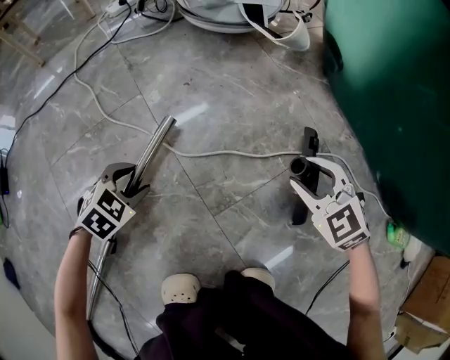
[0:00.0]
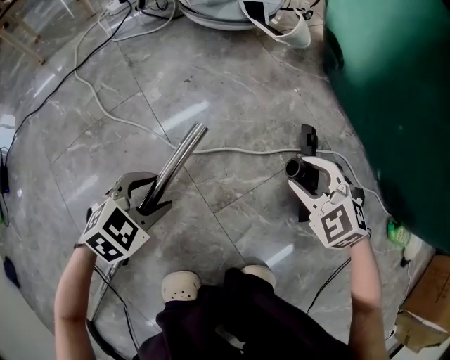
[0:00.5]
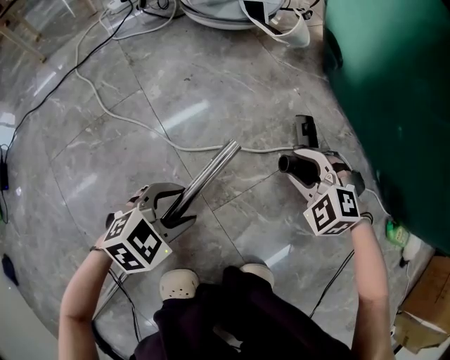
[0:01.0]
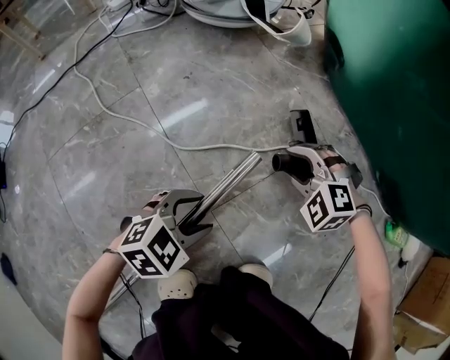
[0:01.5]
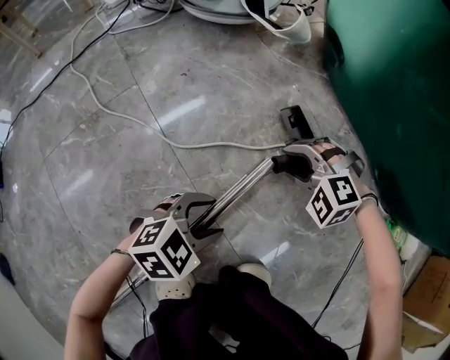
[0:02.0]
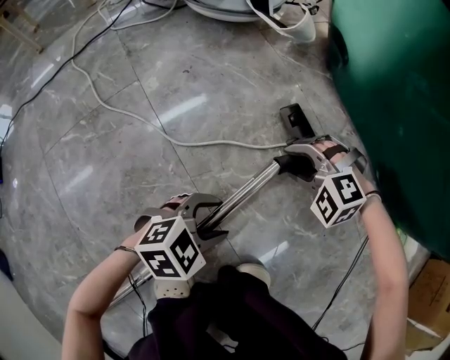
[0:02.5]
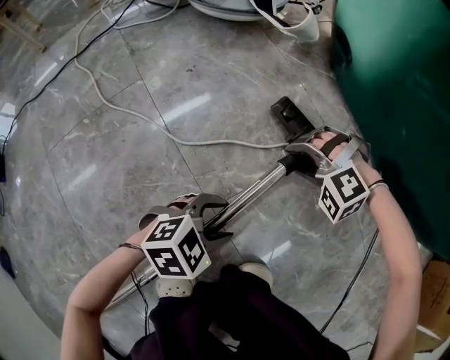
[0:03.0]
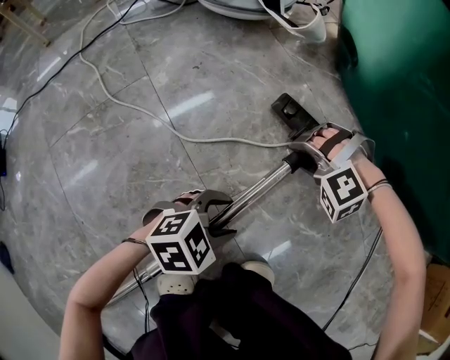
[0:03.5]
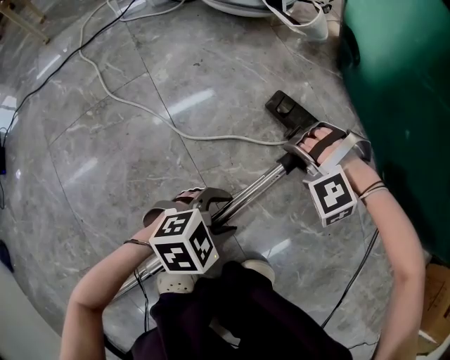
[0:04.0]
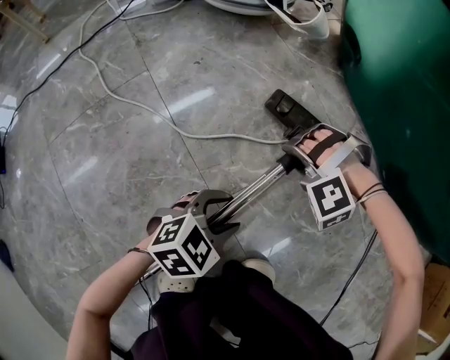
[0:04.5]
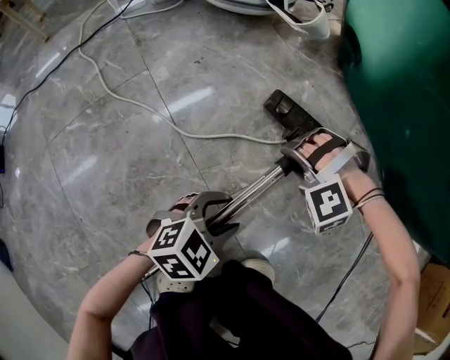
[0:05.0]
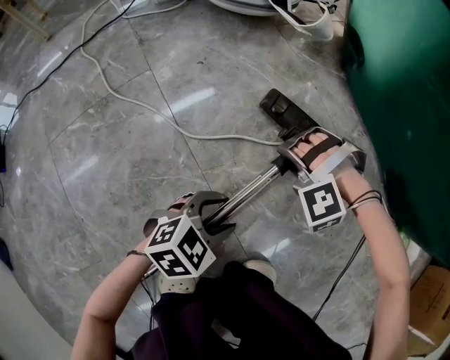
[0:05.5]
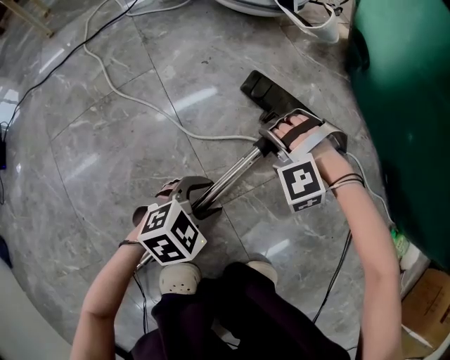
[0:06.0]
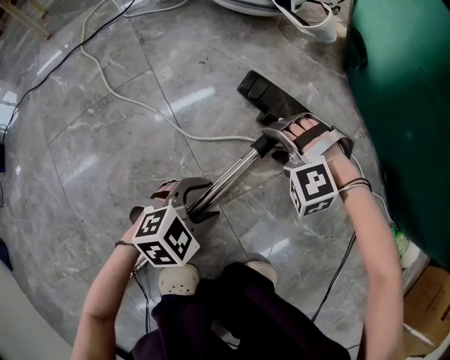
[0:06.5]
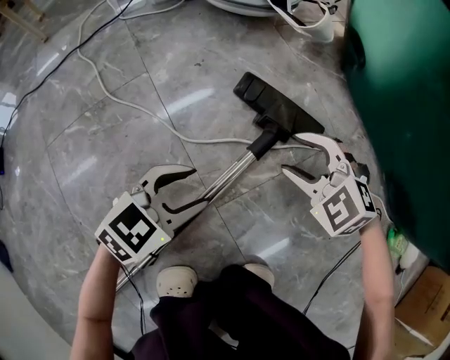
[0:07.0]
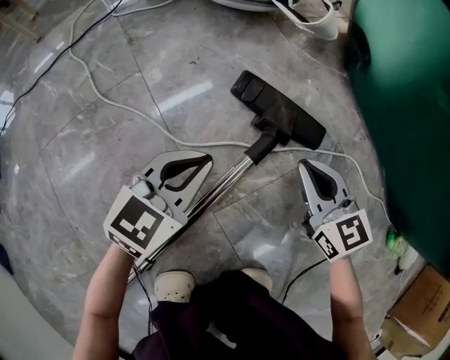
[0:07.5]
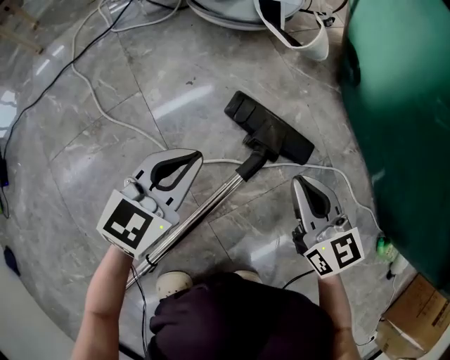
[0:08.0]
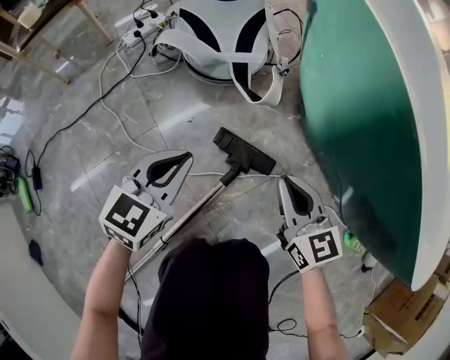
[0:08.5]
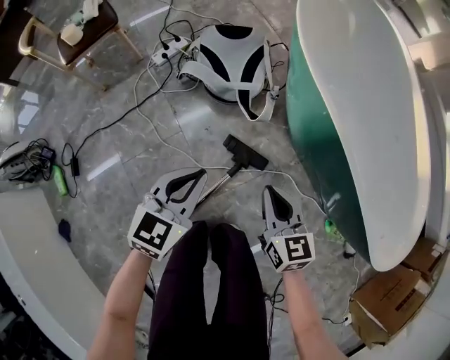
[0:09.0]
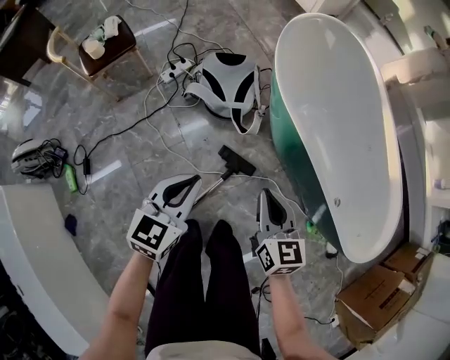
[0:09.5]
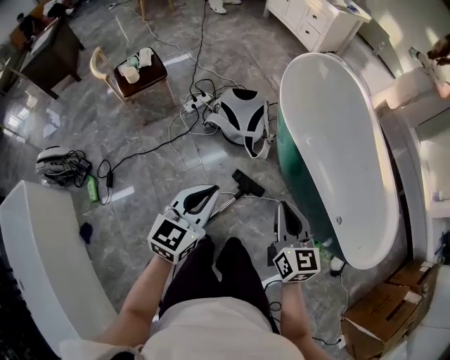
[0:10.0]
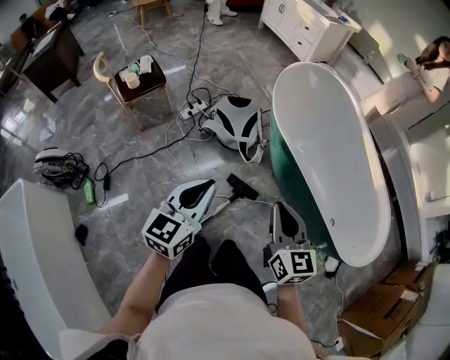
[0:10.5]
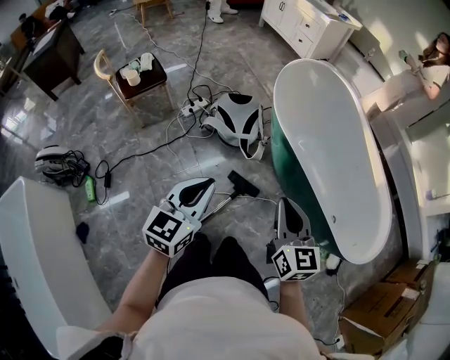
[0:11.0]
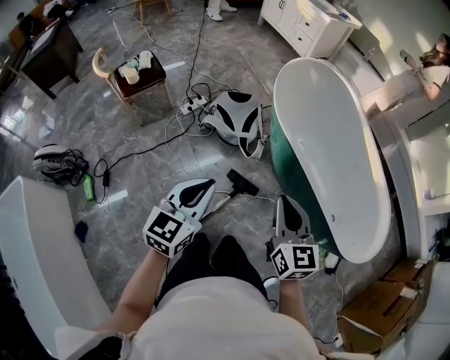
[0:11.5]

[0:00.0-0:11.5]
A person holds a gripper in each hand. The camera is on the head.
0:00.0 to 0:02.0: The right gripper moves downward, about 5 cm, and turns by approximately 40 degrees. The left gripper is displaced to the right by some 20 cm, and changes its angle by about 30 degrees.
0:02.0 to 0:04.0: The right gripper swivels about 30 degrees.
0:04.0 to 0:06.0: Both grippers move to the left, approximately 5 cm.
0:06.0 to 0:07.5: The right gripper is displaced upward and to the right by about 10 cm, rotates around the line of its fingers by about 100 degrees, clockwise from behind, and closes up. The left gripper shifts approximately 15 cm forward and upward, turns by some 30 degrees, and closes up.
0:07.5 to 0:09.5: Both grippers move upward, roughly 70 cm. The right gripper swivels some 20 degrees.
0:09.5 to 0:11.5: The grippers both shift upward and backward by roughly 20 cm.

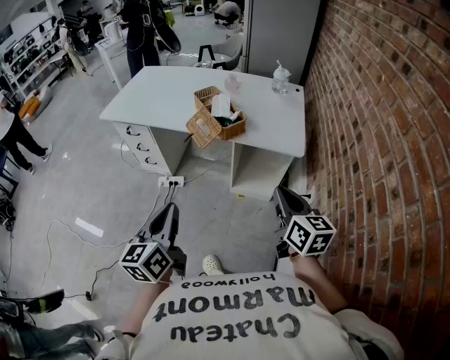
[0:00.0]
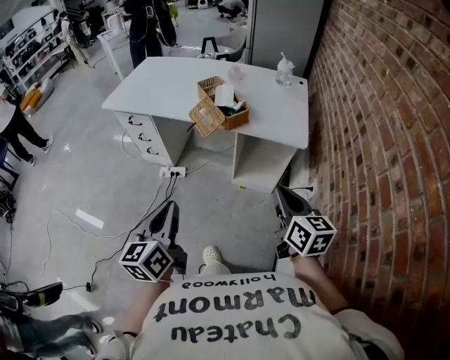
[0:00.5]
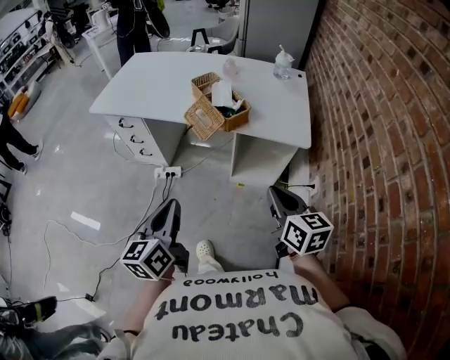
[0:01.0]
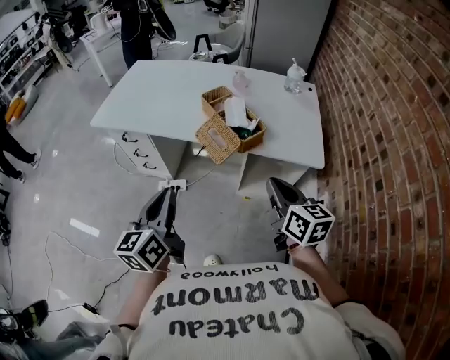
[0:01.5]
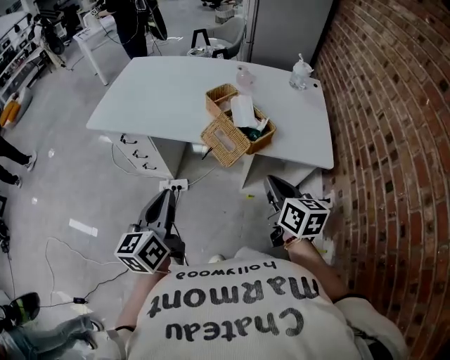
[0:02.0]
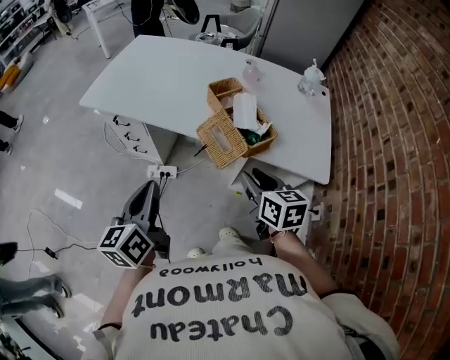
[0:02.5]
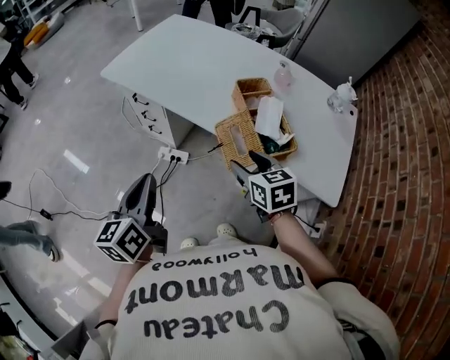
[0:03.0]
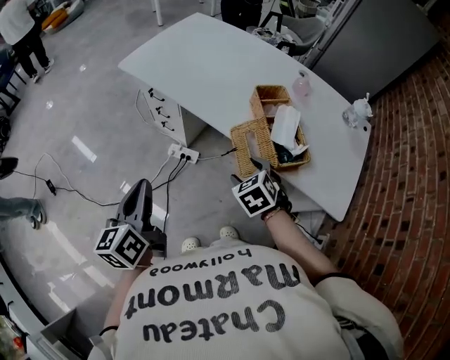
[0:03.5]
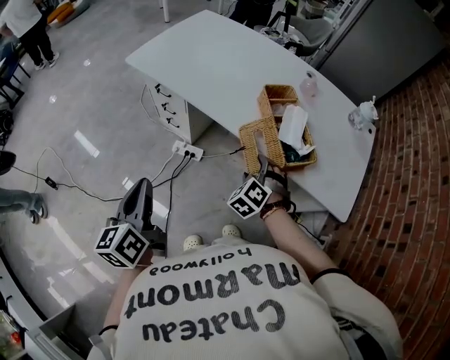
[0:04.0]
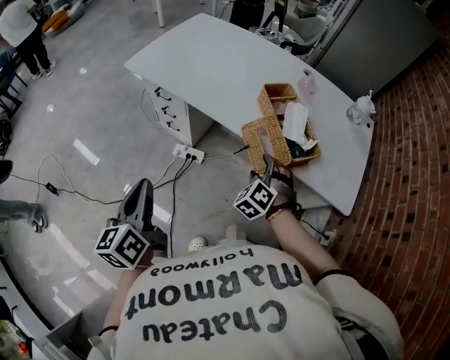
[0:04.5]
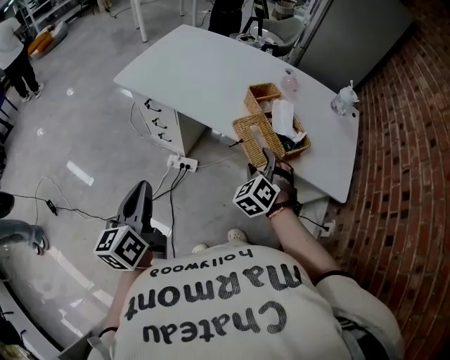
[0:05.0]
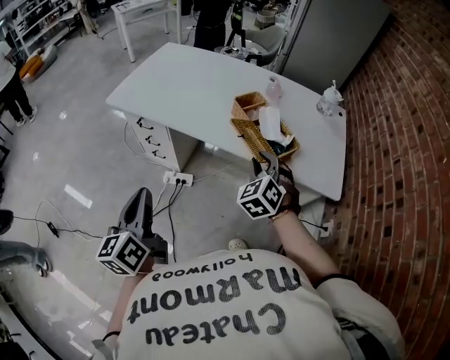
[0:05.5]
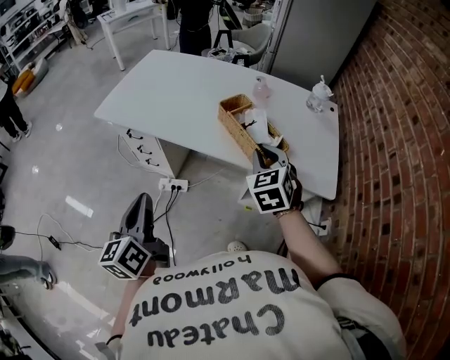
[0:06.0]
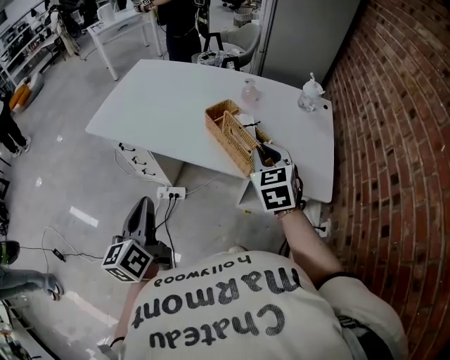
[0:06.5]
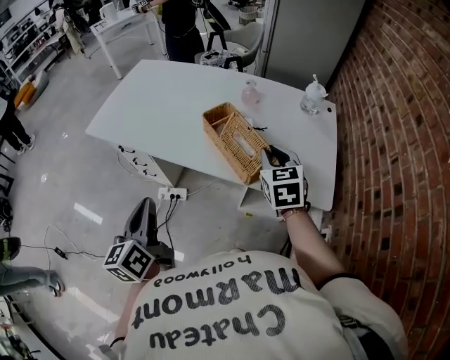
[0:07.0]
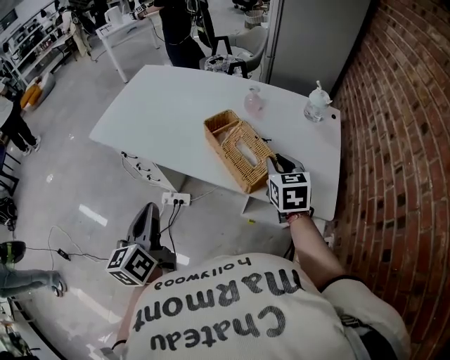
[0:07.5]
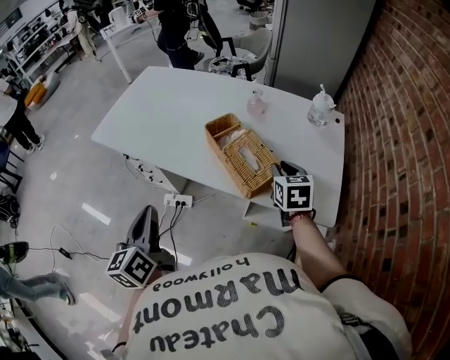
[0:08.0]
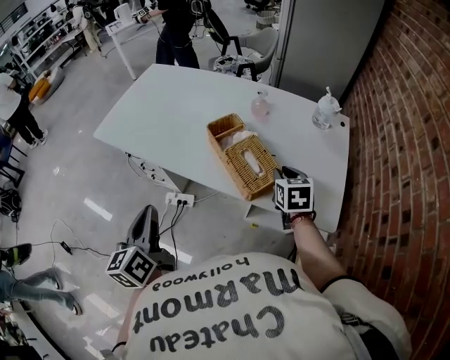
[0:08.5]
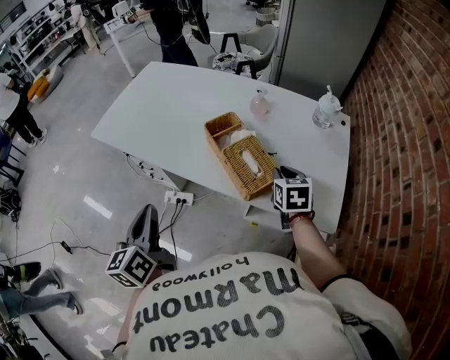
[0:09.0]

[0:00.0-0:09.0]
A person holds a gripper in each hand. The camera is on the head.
0:00.0 to 0:02.0: The two grippers go some 25 cm forward and to the left.
0:02.0 to 0:04.5: The right gripper is displaced forward, downward and to the left by about 20 cm, rolls counterclockwise, seen from behind, by some 90 degrees, and opens up, while the left gripper travels to the left by about 10 cm, and rotates approximately 30 degrees.
0:04.5 to 0:07.0: The right gripper goes about 25 cm upward, to the right and forward, rotates around the line of its fingers by some 50 degrees, clockwise from behind, and closes. The left gripper travels to the right and forward by some 15 cm.
0:07.0 to 0:09.0: The right gripper is displaced downward and to the right by roughly 10 cm.

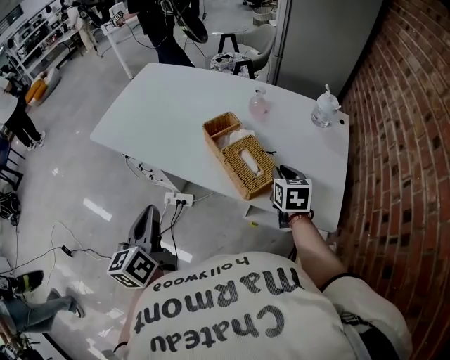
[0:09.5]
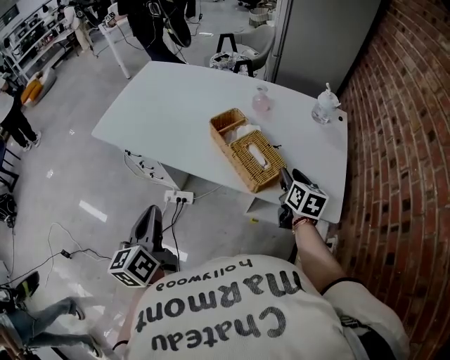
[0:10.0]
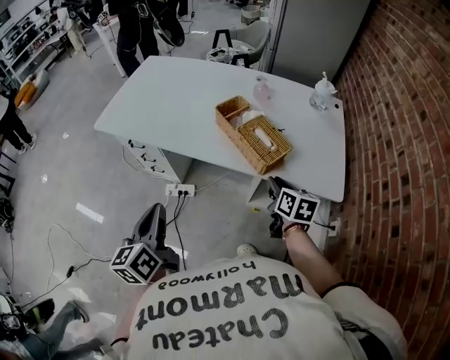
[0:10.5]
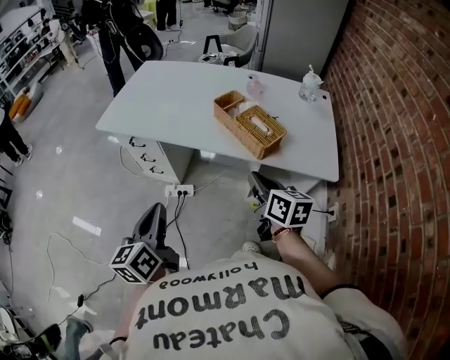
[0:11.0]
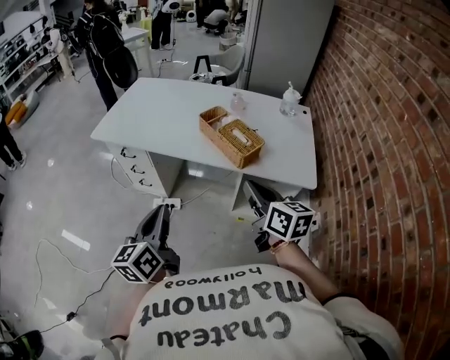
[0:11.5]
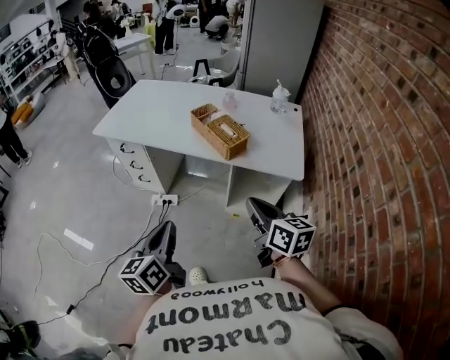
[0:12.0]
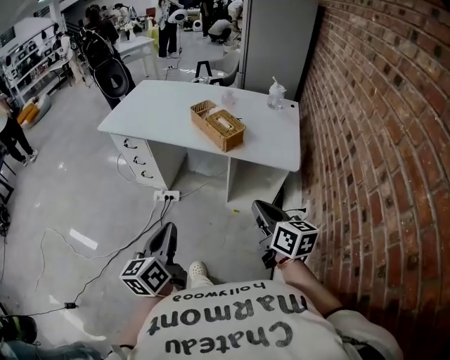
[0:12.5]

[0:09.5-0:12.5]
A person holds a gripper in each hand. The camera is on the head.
0:09.5 to 0:11.0: The left gripper travels backward and to the left by approximately 15 cm. Meanwhile the right gripper travels backward and to the left by some 30 cm, rotates some 30 degrees, and opens, then closes again.
0:11.0 to 0:12.5: The two grippers go about 25 cm backward and to the right.

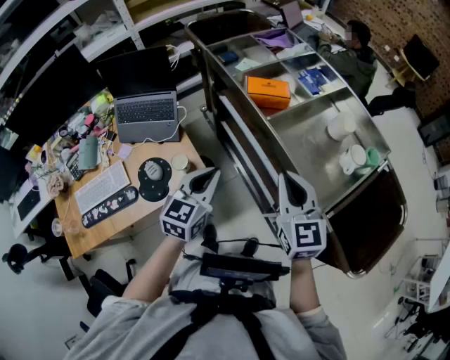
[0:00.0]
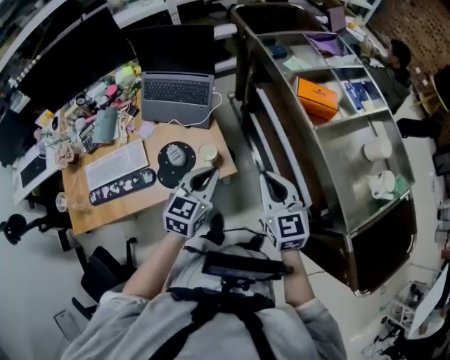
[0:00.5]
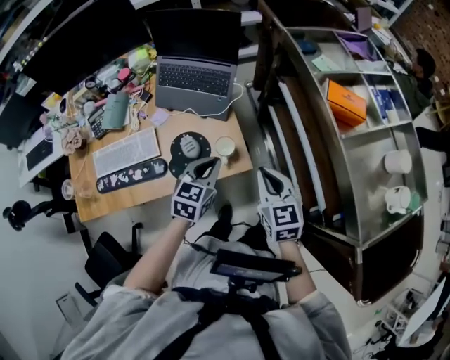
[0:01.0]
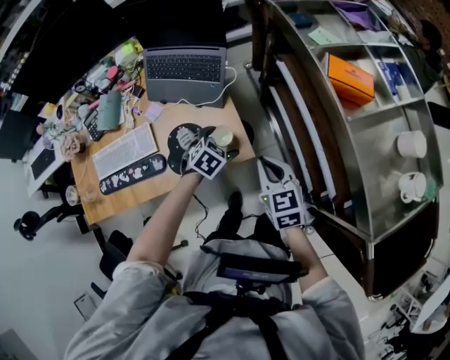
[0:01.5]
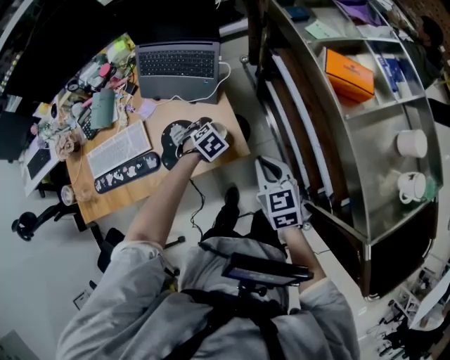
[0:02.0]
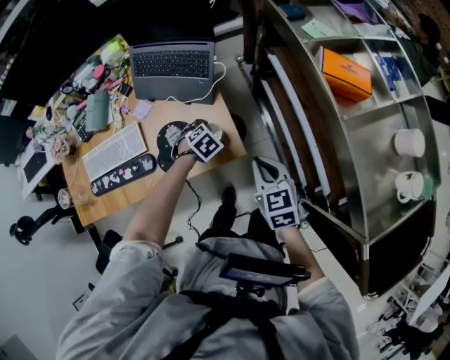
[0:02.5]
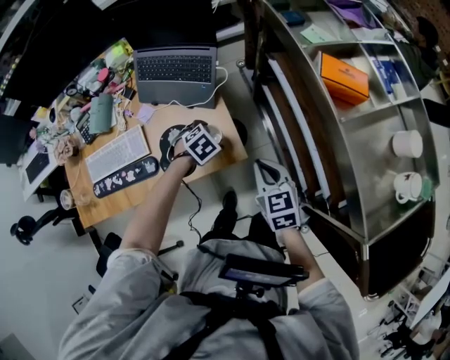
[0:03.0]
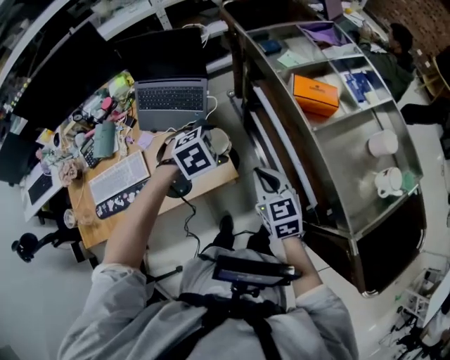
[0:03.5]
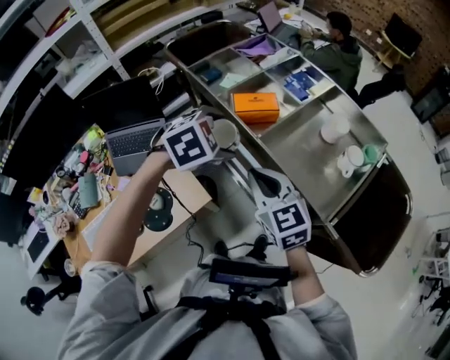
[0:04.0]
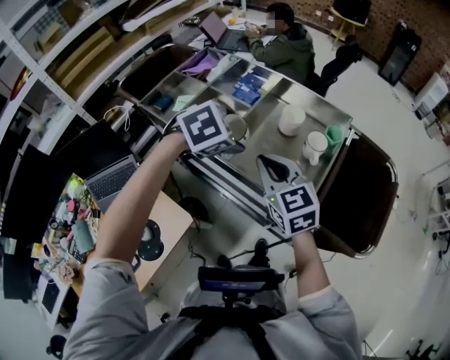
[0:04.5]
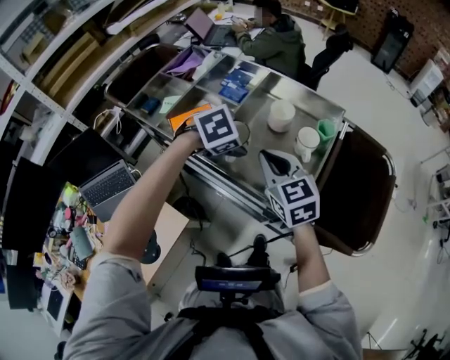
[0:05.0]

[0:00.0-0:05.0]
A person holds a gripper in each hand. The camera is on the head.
0:00.0 to 0:02.5: The right gripper goes roughly 20 cm downward, and rotates some 30 degrees; the left gripper heads downward, covering some 35 cm, tilts its fingers roughly 60 degrees downward, and opens its fingers.
0:02.5 to 0:05.0: The left gripper ends up about 60 cm from where it was, and rotates around the line of its fingers by approximately 60 degrees, clockwise from behind. Meanwhile the right gripper shifts by roughly 40 cm, and turns by some 40 degrees.
